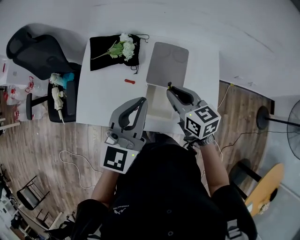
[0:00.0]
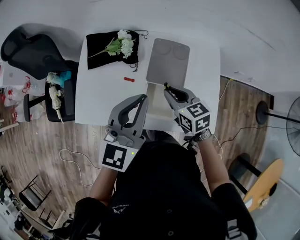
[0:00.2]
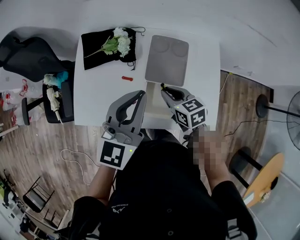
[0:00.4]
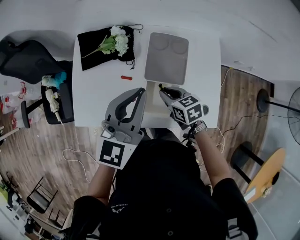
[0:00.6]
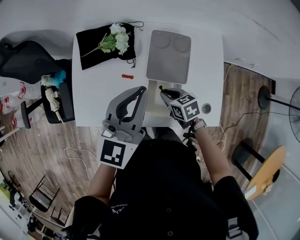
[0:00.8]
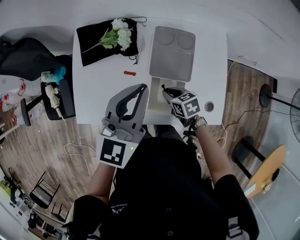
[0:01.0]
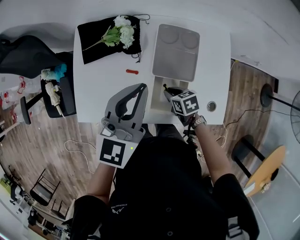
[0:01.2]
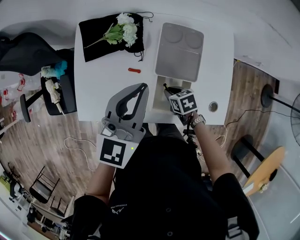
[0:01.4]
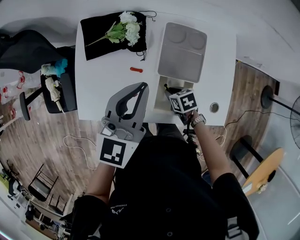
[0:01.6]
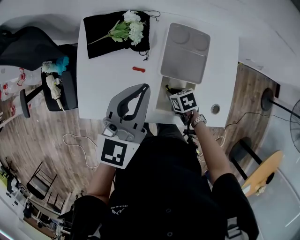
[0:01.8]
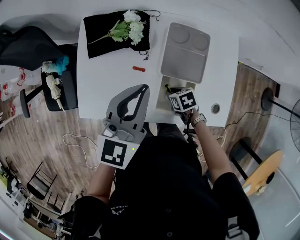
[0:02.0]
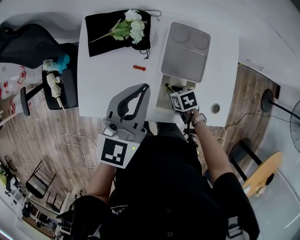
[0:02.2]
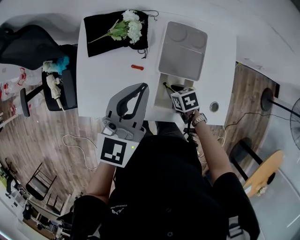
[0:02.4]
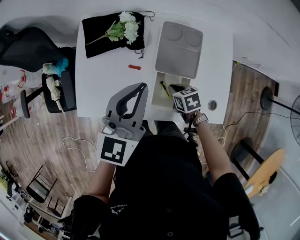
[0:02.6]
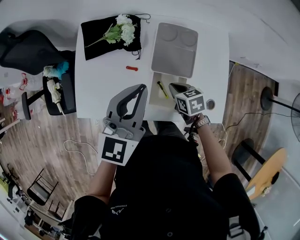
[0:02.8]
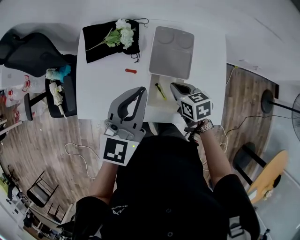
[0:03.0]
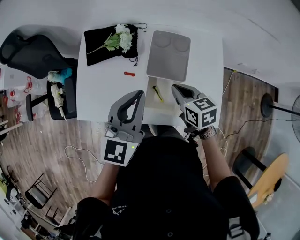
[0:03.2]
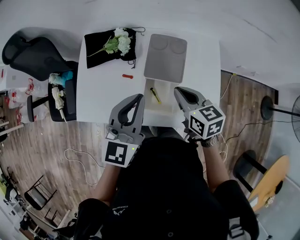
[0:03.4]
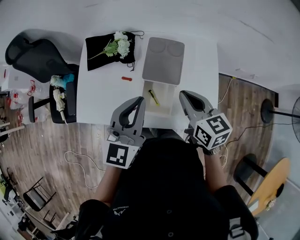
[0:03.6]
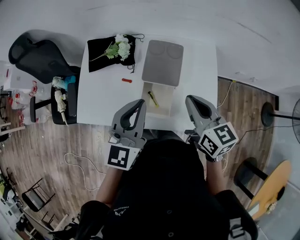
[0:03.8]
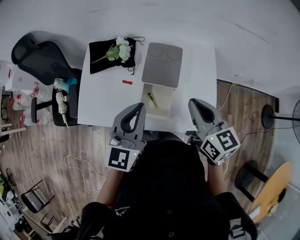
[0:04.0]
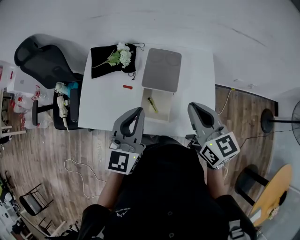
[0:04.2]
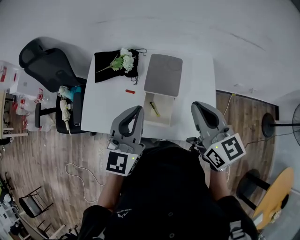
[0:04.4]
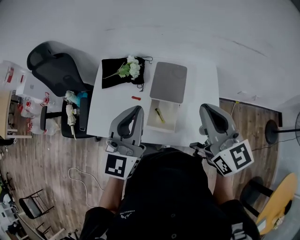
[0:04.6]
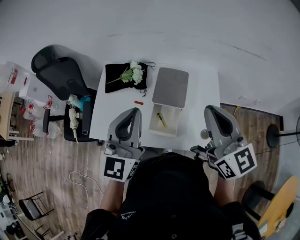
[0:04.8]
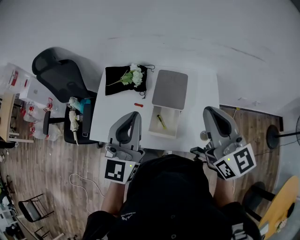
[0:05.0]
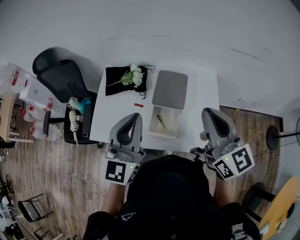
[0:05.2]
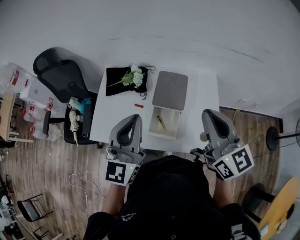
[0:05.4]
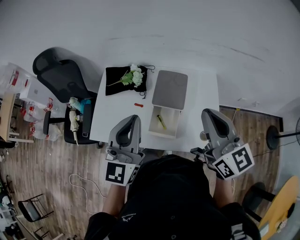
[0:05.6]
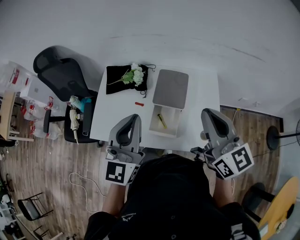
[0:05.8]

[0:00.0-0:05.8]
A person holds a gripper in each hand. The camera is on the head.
0:00.0 to 0:01.4: The left gripper heads forward and downward, covering roughly 10 cm; the right gripper travels downward by about 25 cm, and tilts its fingers approximately 30 degrees downward.
0:01.4 to 0:02.8: The right gripper moves upward, some 5 cm.
0:02.8 to 0:04.4: The right gripper travels upward by approximately 30 cm, and tips its fingers upward by roughly 40 degrees. Meanwhile the left gripper goes some 10 cm backward and upward.
0:04.4 to 0:05.8: The right gripper is displaced upward by approximately 5 cm, while the left gripper changes place by about 5 cm.

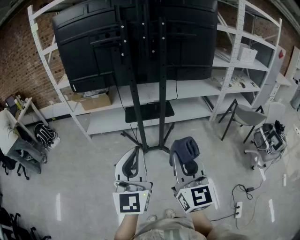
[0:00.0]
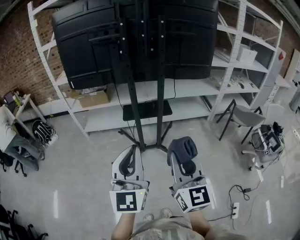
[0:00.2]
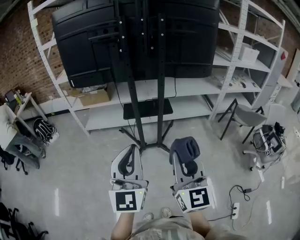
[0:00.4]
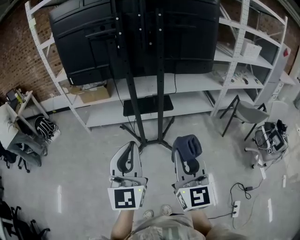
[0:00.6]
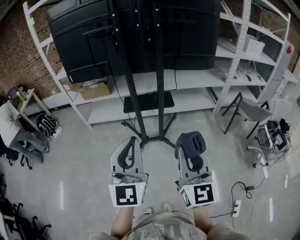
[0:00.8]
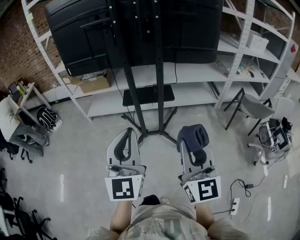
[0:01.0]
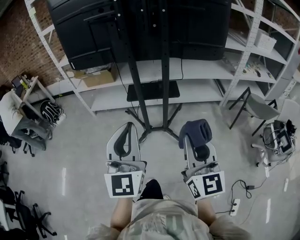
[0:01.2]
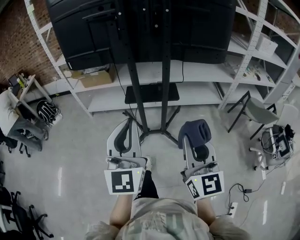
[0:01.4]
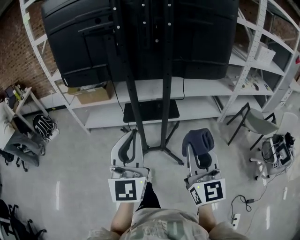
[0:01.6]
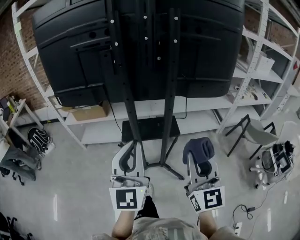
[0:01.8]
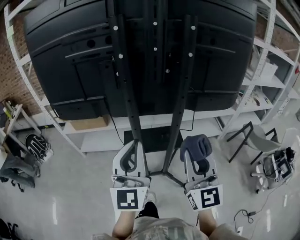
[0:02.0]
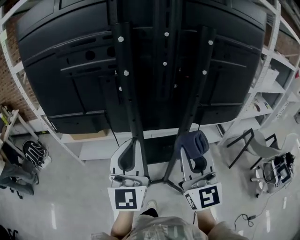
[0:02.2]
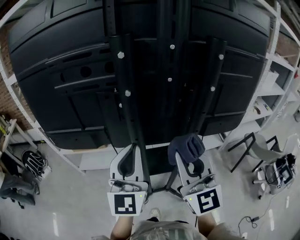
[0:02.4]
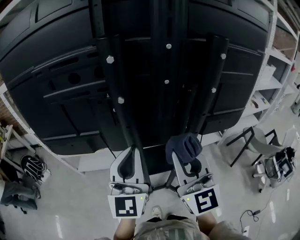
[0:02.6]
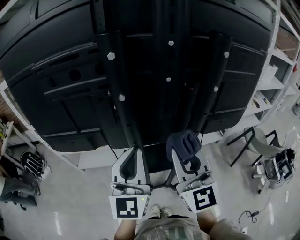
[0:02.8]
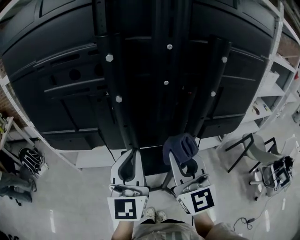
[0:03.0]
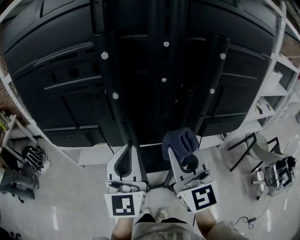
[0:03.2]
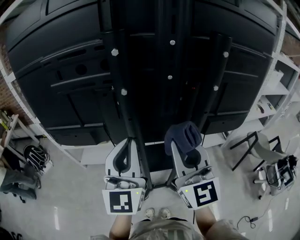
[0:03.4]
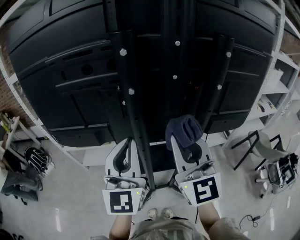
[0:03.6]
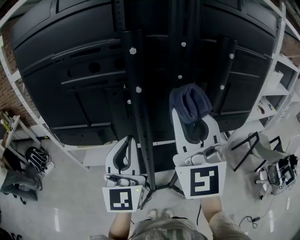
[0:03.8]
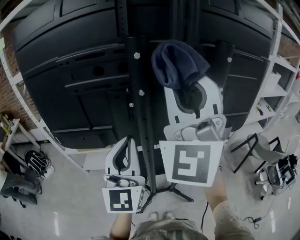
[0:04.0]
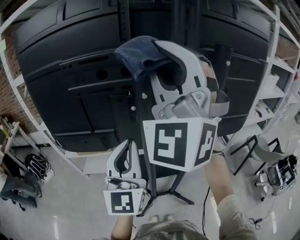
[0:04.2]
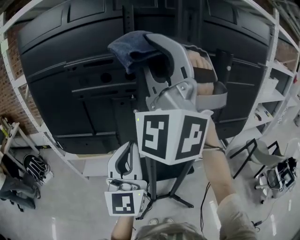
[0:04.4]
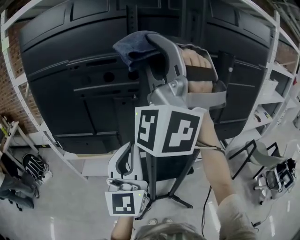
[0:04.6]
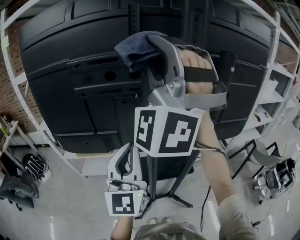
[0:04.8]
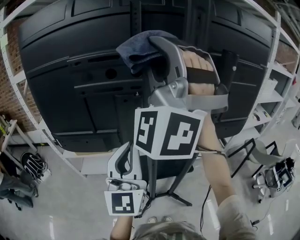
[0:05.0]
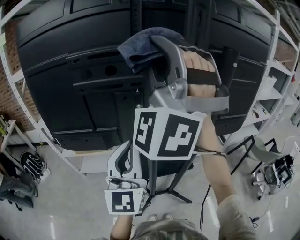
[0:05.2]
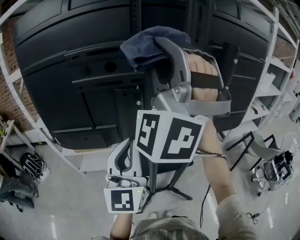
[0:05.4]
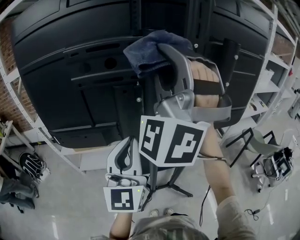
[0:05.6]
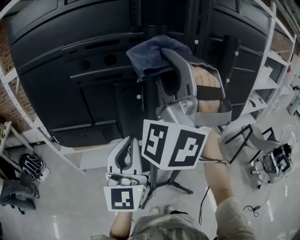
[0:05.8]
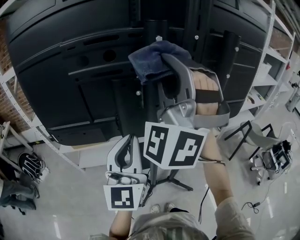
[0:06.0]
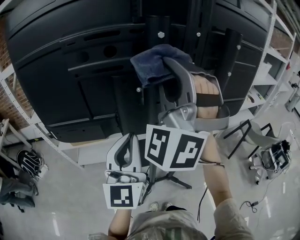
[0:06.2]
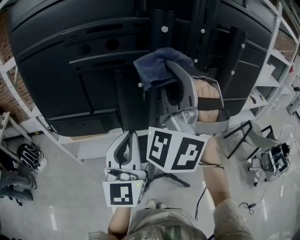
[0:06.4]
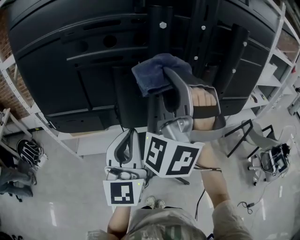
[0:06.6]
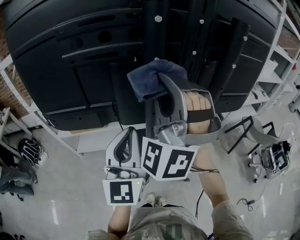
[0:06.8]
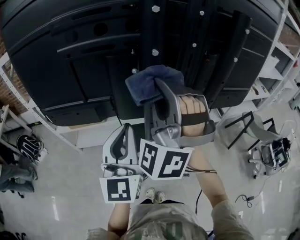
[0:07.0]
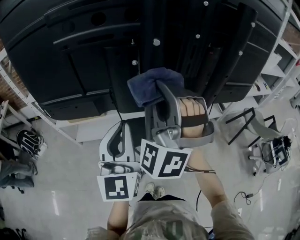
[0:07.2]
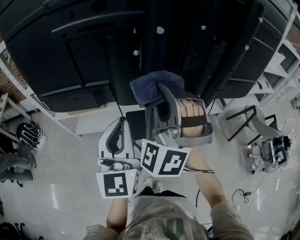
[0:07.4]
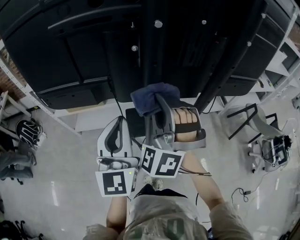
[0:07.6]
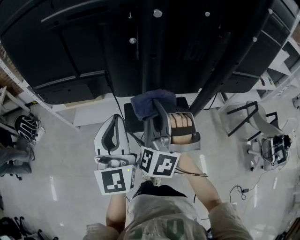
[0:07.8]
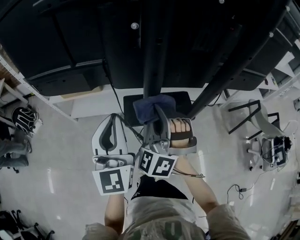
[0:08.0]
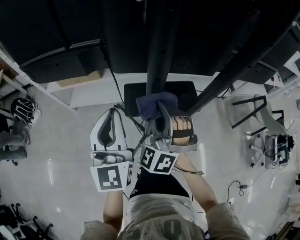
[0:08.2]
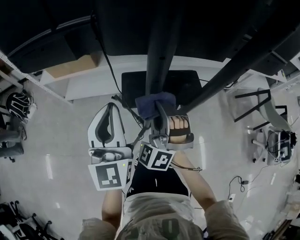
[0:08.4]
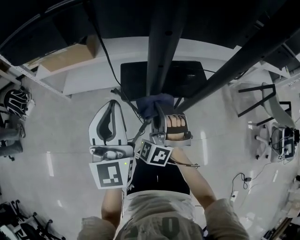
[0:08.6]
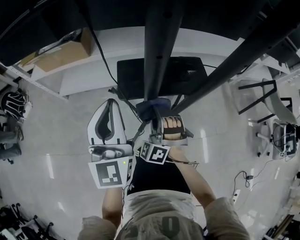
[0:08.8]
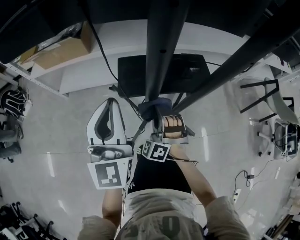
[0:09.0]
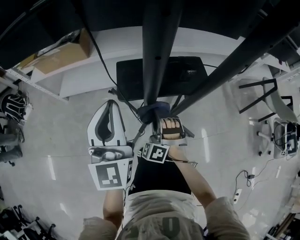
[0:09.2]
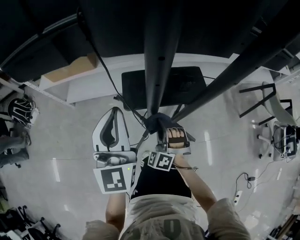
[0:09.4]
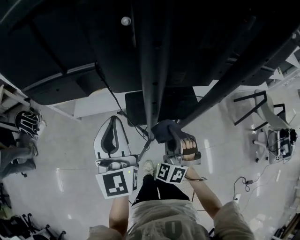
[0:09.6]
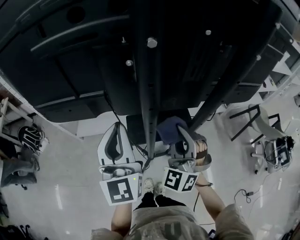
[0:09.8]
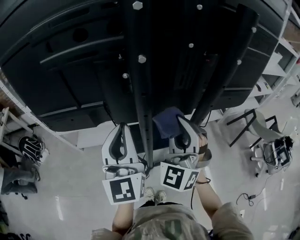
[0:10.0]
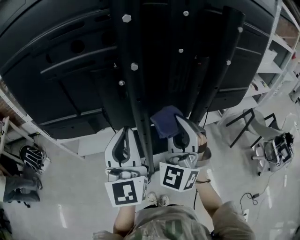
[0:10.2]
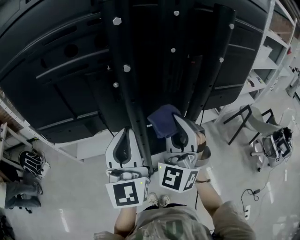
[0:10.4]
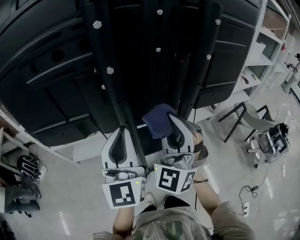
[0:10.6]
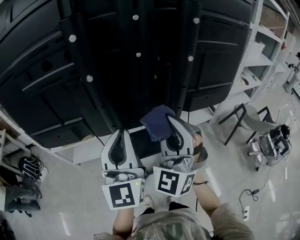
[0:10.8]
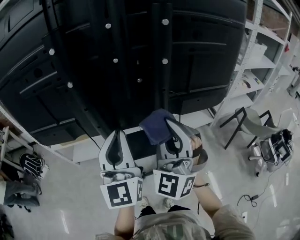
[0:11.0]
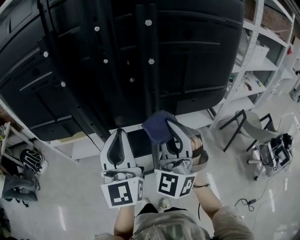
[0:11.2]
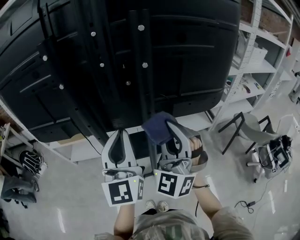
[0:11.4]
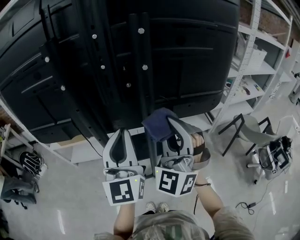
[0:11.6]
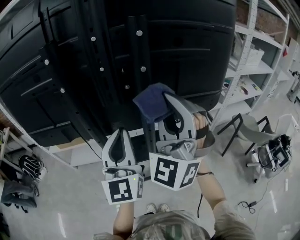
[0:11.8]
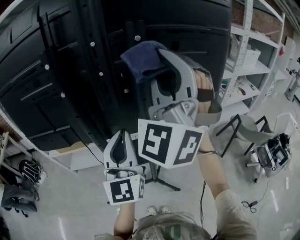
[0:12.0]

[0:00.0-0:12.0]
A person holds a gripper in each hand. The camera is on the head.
0:00.0 to 0:01.6: The left gripper heads forward, covering some 15 cm, while the right gripper heads forward and to the right, covering some 15 cm.
0:01.6 to 0:03.0: Both grippers travel together forward, some 35 cm.
0:03.0 to 0:04.4: The left gripper goes approximately 10 cm to the left and upward, while the right gripper heads upward and to the left, covering some 30 cm, and twists approximately 60 degrees counterclockwise, seen from behind.
0:04.4 to 0:06.0: The right gripper is displaced downward by roughly 10 cm.
0:06.0 to 0:07.6: The left gripper shifts roughly 10 cm downward. Meanwhile the right gripper is displaced downward by roughly 25 cm, and swivels approximately 20 degrees.
0:07.6 to 0:09.0: The left gripper goes approximately 25 cm downward, while the right gripper shifts roughly 50 cm downward.
0:09.0 to 0:10.4: The left gripper moves upward, some 30 cm; the right gripper is displaced upward by about 50 cm, and tips its fingers upward by roughly 30 degrees.
0:10.4 to 0:12.0: The right gripper is displaced upward and to the right by roughly 25 cm, while the left gripper goes some 15 cm to the right.

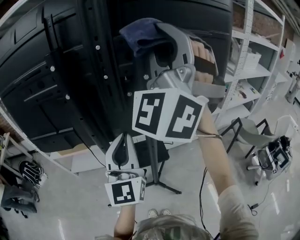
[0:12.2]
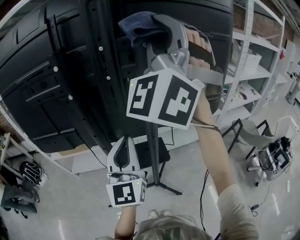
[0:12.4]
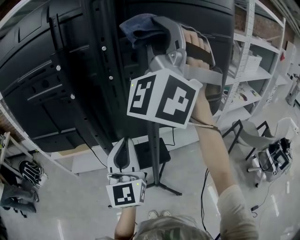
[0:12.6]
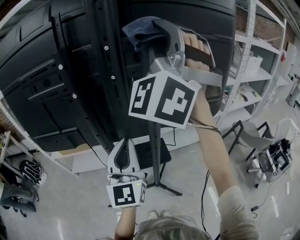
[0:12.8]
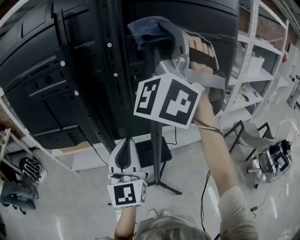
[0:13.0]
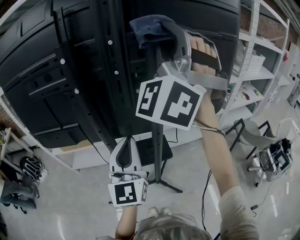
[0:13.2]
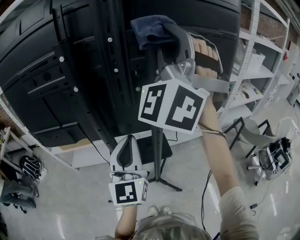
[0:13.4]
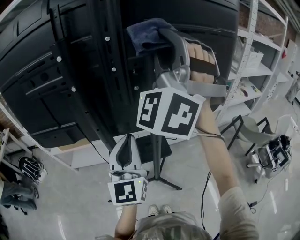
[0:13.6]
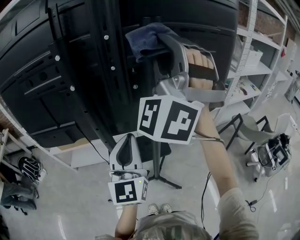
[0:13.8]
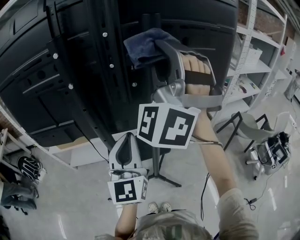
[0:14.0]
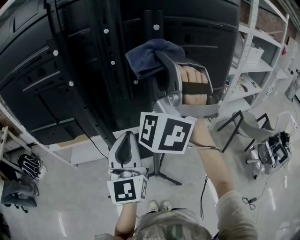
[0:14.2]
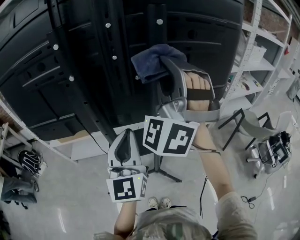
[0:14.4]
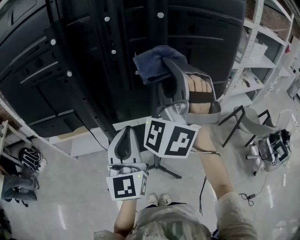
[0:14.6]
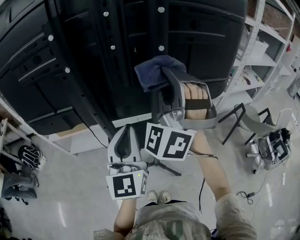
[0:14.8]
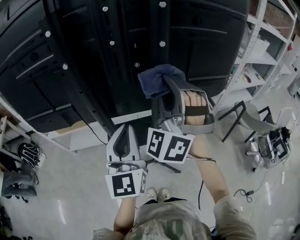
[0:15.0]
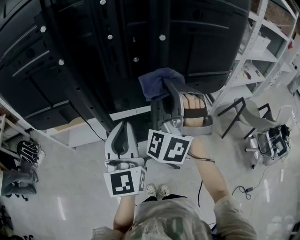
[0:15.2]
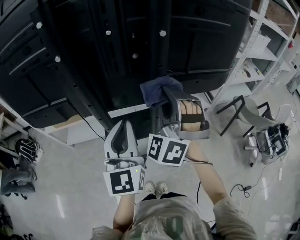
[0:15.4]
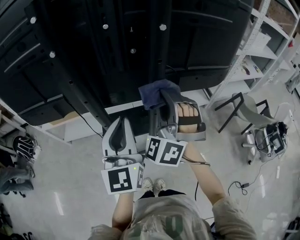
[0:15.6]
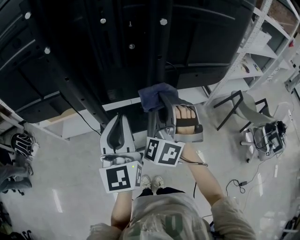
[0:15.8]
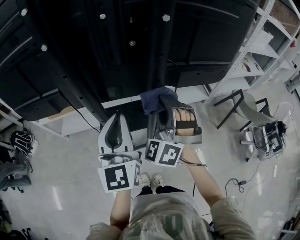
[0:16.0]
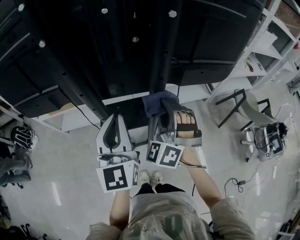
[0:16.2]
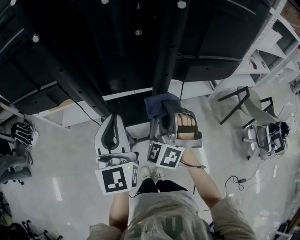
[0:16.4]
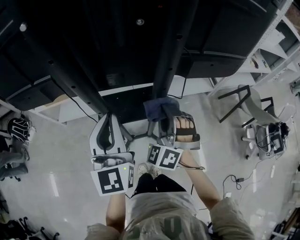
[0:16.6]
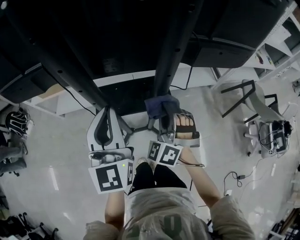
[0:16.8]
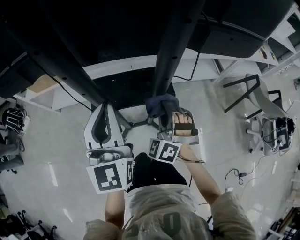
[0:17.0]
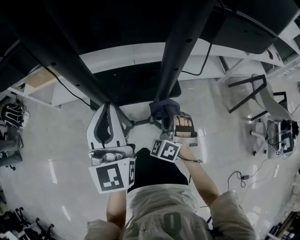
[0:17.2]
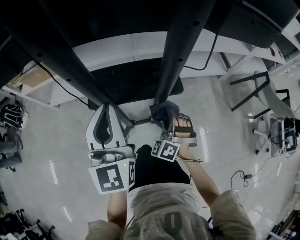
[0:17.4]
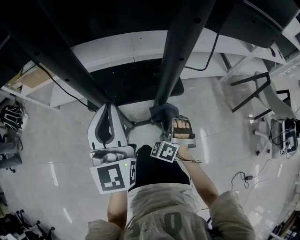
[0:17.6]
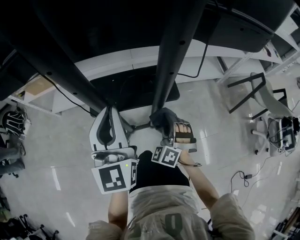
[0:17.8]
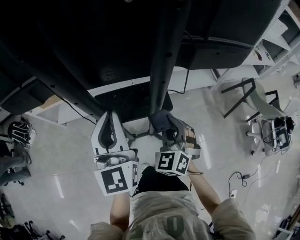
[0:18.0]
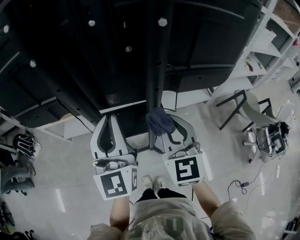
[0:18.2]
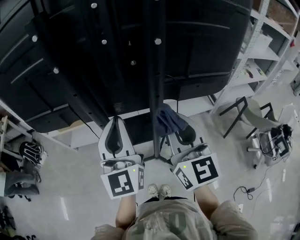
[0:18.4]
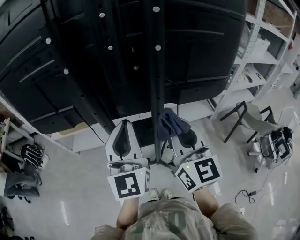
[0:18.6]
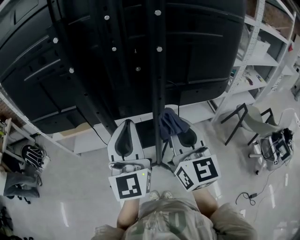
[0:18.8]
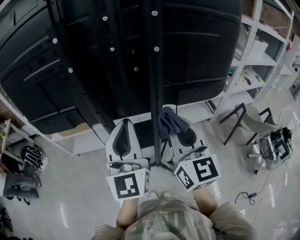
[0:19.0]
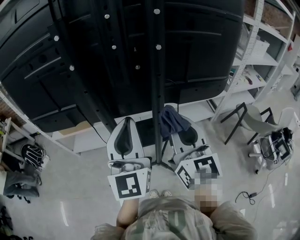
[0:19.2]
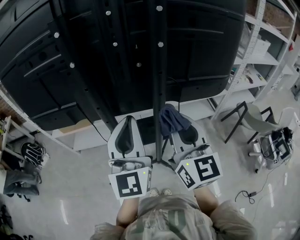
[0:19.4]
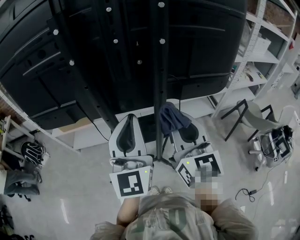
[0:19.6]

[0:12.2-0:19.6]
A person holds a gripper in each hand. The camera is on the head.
0:12.2 to 0:13.6: The grippers make only small movements.
0:13.6 to 0:15.2: The right gripper heads downward, covering roughly 20 cm.
0:15.2 to 0:16.6: The right gripper shifts about 25 cm downward, and swivels roughly 20 degrees; the left gripper goes some 10 cm downward.
0:16.6 to 0:18.2: The right gripper reaches about 30 cm downward, then returns, and twists roughly 50 degrees clockwise, seen from behind. Meanwhile the left gripper travels downward and back again, approximately 20 cm each way.
0:18.2 to 0:19.6: The left gripper shifts roughly 5 cm upward and backward; the right gripper moves upward, approximately 10 cm.
